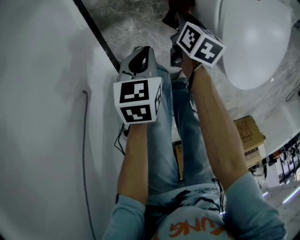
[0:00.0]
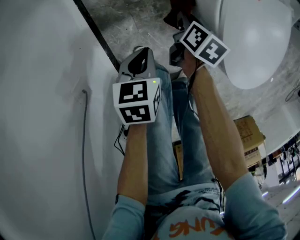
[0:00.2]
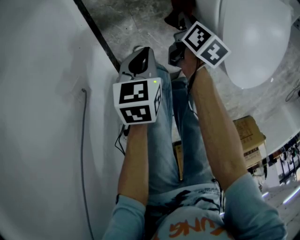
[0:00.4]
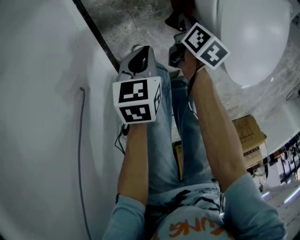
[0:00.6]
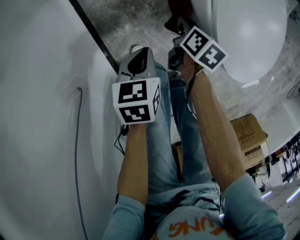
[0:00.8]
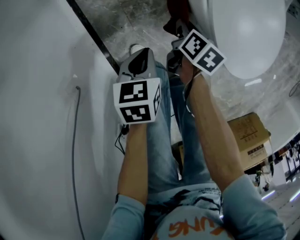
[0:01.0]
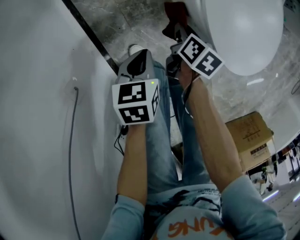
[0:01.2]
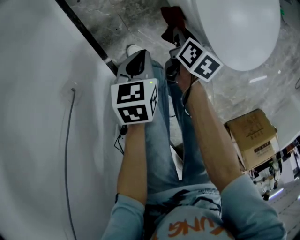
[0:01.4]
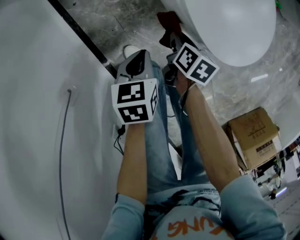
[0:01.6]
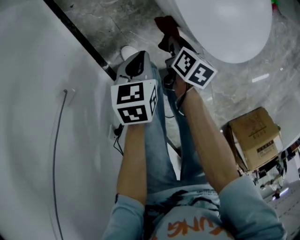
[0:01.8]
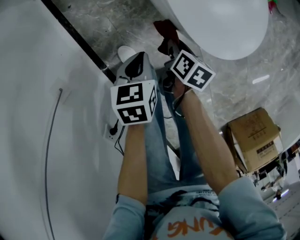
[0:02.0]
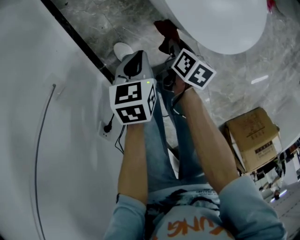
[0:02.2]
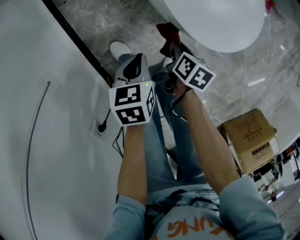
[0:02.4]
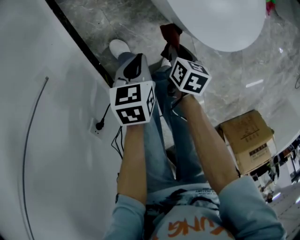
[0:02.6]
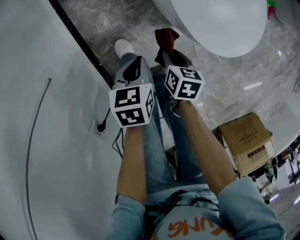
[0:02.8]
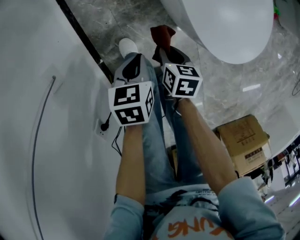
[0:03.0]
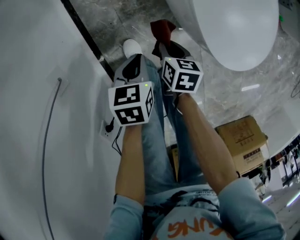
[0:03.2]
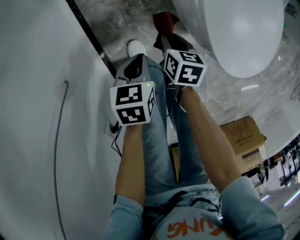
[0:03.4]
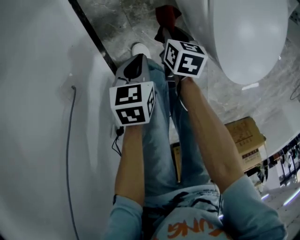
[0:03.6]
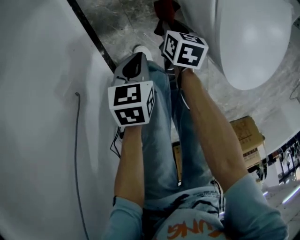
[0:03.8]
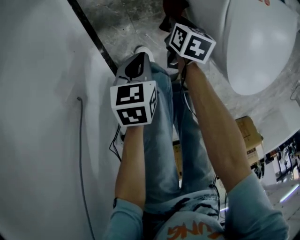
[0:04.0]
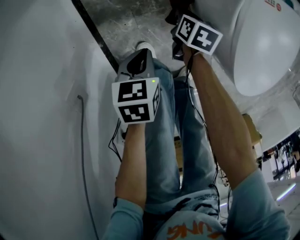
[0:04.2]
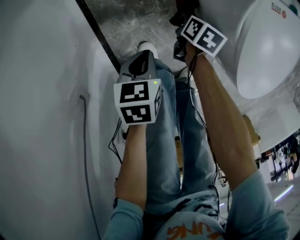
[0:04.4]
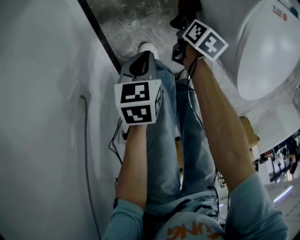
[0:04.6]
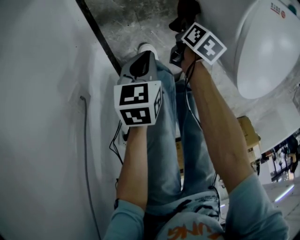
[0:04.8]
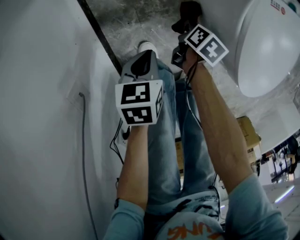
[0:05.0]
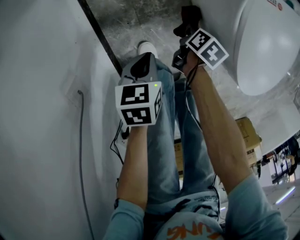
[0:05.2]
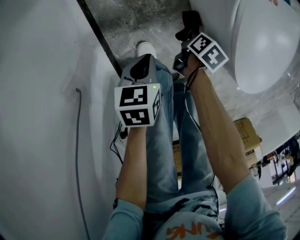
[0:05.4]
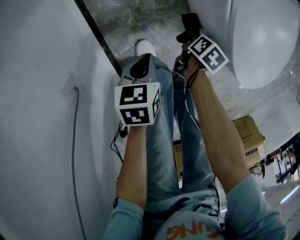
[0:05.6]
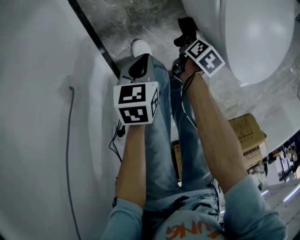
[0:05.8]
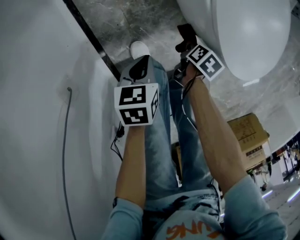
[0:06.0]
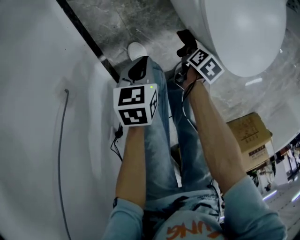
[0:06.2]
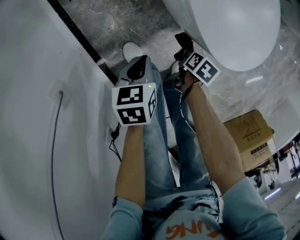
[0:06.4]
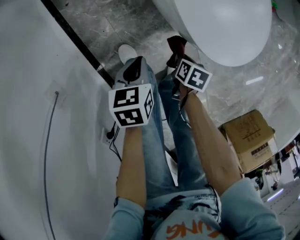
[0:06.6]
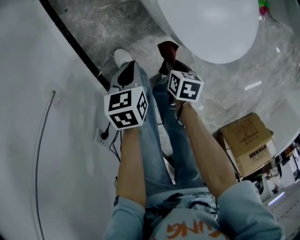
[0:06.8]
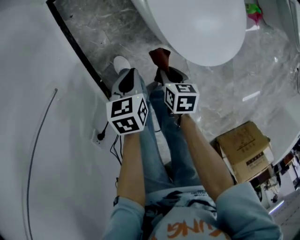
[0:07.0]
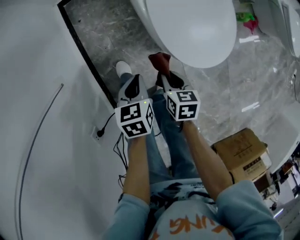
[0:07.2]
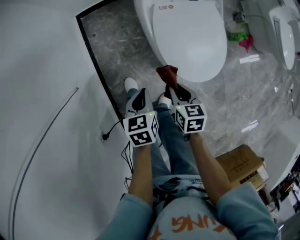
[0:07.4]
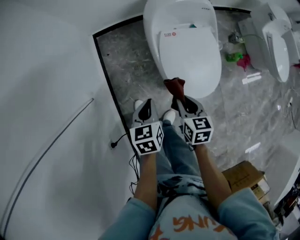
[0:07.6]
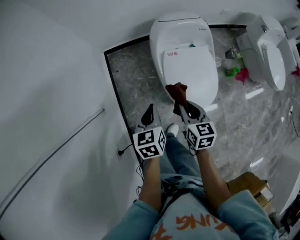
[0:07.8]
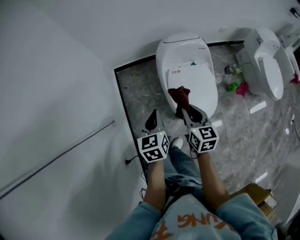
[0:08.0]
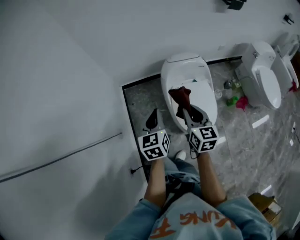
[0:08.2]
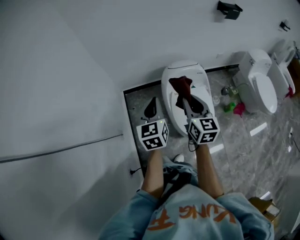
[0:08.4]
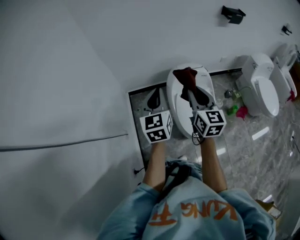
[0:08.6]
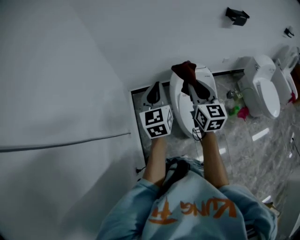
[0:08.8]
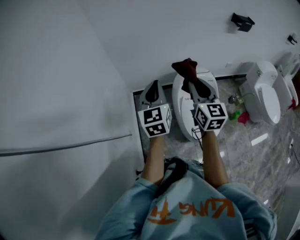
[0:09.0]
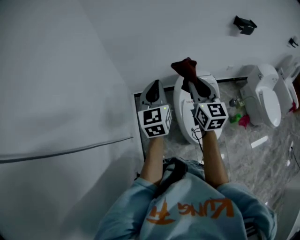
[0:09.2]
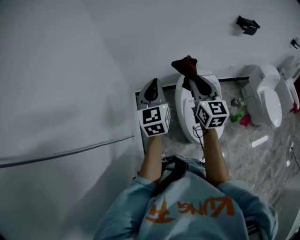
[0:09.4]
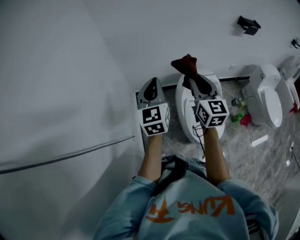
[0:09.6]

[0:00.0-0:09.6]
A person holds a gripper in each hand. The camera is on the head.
0:00.0 to 0:01.6: The left gripper moves to the right, some 10 cm. Meanwhile the right gripper moves to the right and backward, approximately 15 cm.
0:01.6 to 0:03.2: The left gripper travels to the right and back again, roughly 5 cm each way. Meanwhile the right gripper heads backward, covering approximately 5 cm, reaches some 10 cm to the right, then returns, and changes its angle by approximately 30 degrees.
0:03.2 to 0:04.8: The left gripper goes about 15 cm to the left, forward and downward; the right gripper goes roughly 15 cm forward and downward, and rotates about 20 degrees.
0:04.8 to 0:06.4: The right gripper moves some 25 cm. Meanwhile the left gripper changes place by roughly 15 cm.
0:06.4 to 0:08.0: Both grippers travel together upward, some 50 cm. The right gripper tilts its fingers roughly 50 degrees upward; the left gripper rotates about 40 degrees.
0:08.0 to 0:09.6: The right gripper moves upward and forward, some 30 cm, and swivels approximately 30 degrees. Meanwhile the left gripper is displaced upward, forward and to the left by about 30 cm, and turns by roughly 30 degrees.

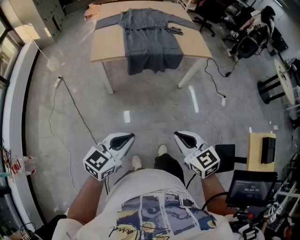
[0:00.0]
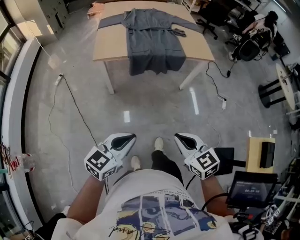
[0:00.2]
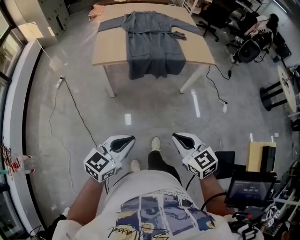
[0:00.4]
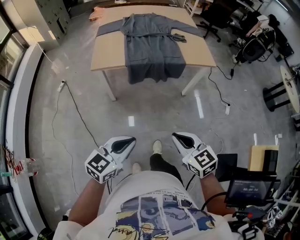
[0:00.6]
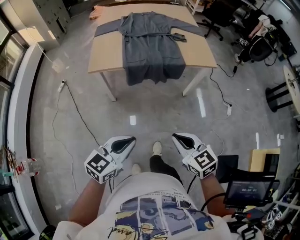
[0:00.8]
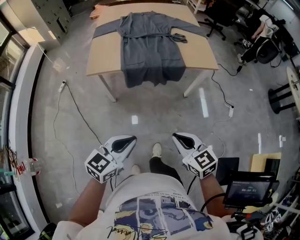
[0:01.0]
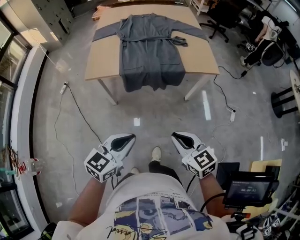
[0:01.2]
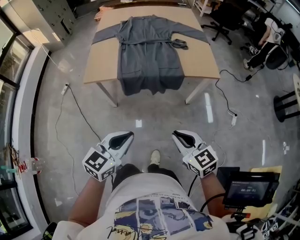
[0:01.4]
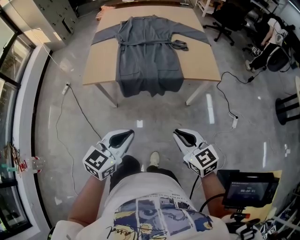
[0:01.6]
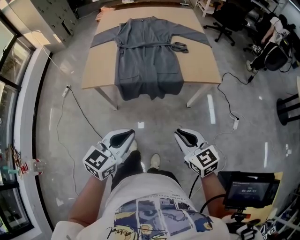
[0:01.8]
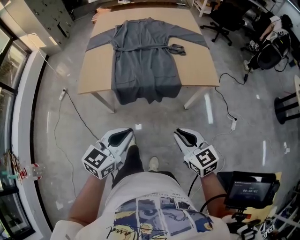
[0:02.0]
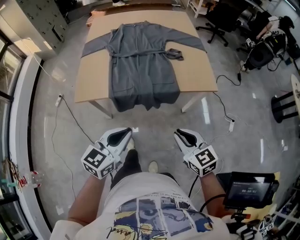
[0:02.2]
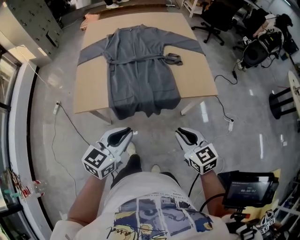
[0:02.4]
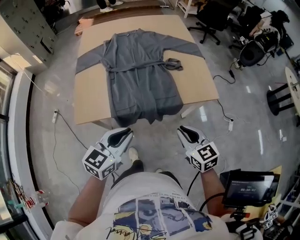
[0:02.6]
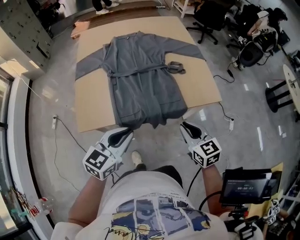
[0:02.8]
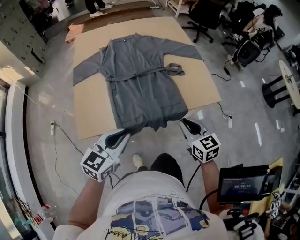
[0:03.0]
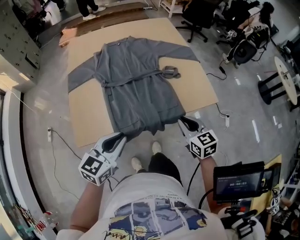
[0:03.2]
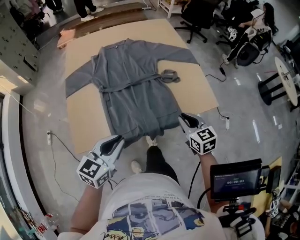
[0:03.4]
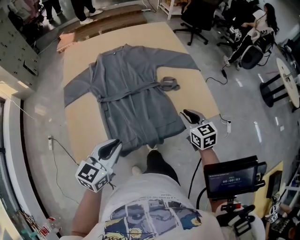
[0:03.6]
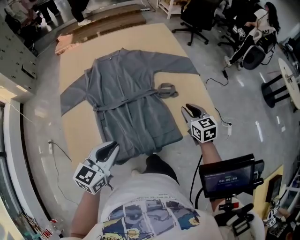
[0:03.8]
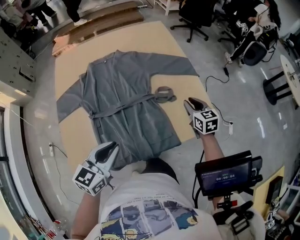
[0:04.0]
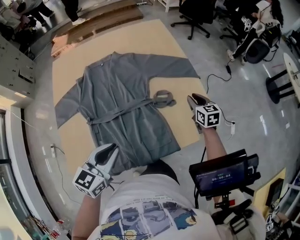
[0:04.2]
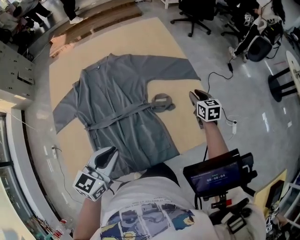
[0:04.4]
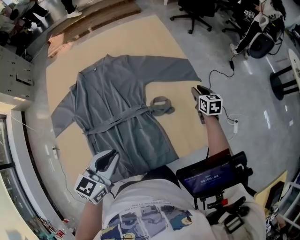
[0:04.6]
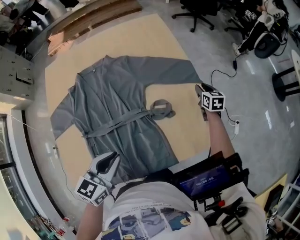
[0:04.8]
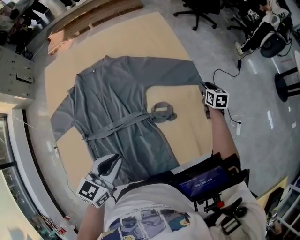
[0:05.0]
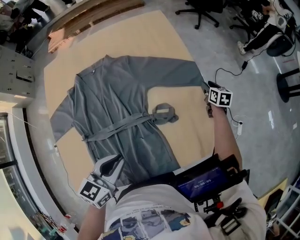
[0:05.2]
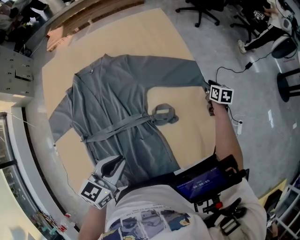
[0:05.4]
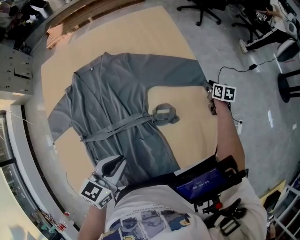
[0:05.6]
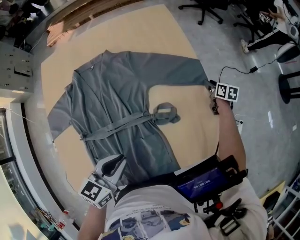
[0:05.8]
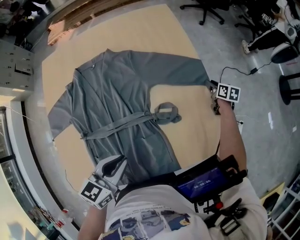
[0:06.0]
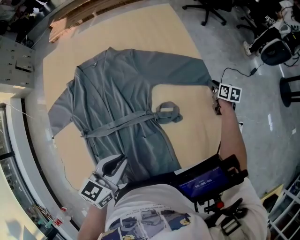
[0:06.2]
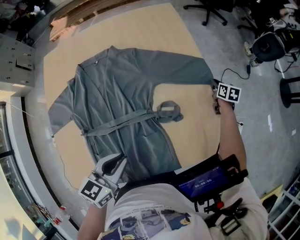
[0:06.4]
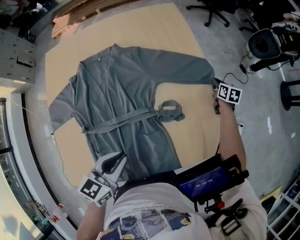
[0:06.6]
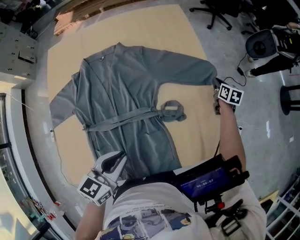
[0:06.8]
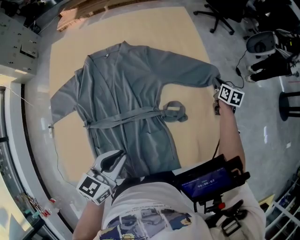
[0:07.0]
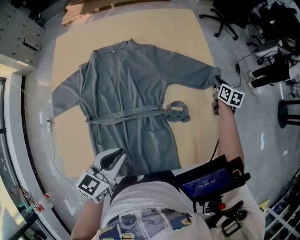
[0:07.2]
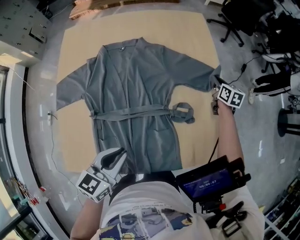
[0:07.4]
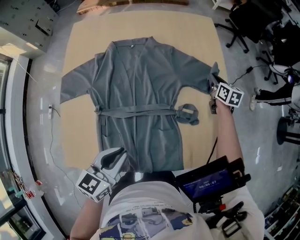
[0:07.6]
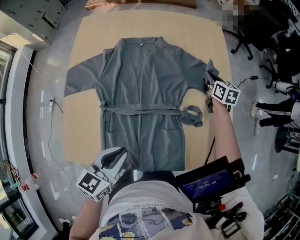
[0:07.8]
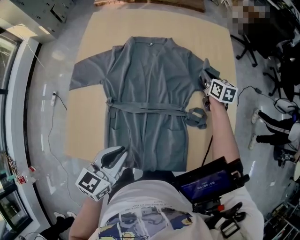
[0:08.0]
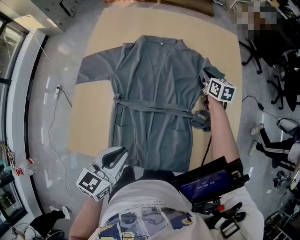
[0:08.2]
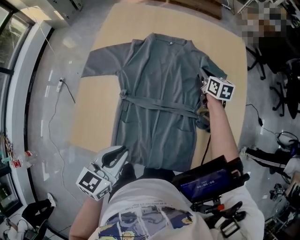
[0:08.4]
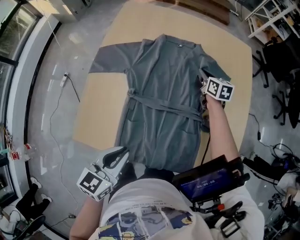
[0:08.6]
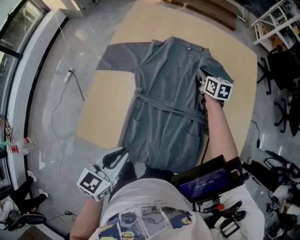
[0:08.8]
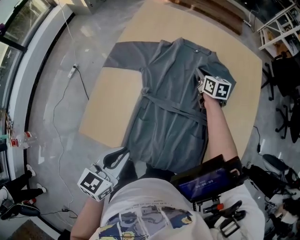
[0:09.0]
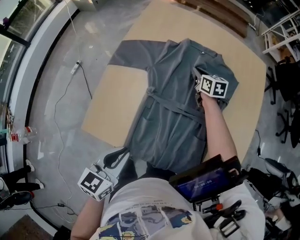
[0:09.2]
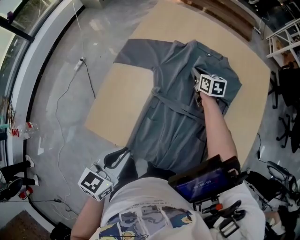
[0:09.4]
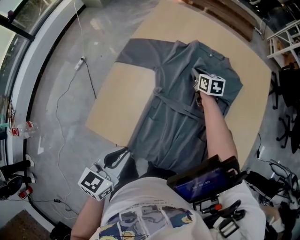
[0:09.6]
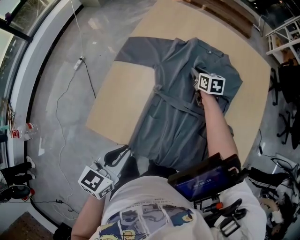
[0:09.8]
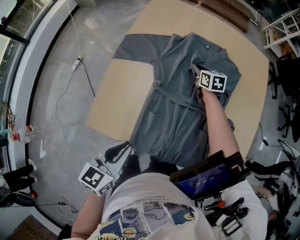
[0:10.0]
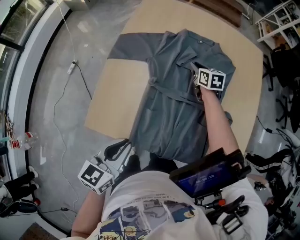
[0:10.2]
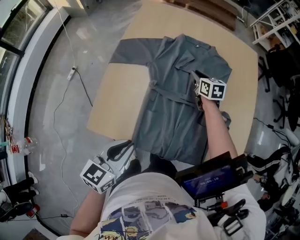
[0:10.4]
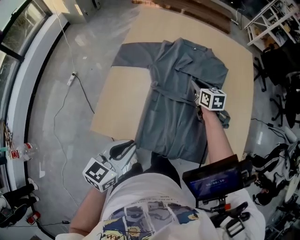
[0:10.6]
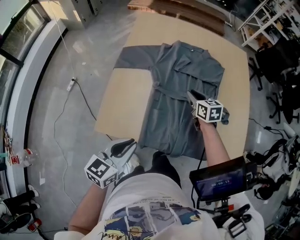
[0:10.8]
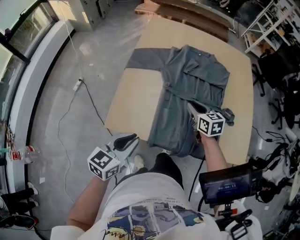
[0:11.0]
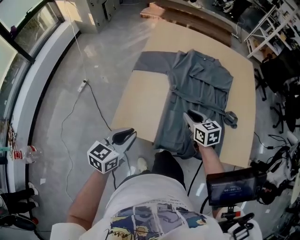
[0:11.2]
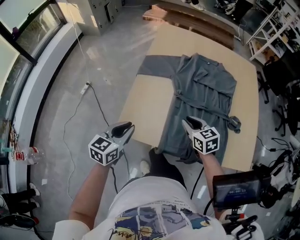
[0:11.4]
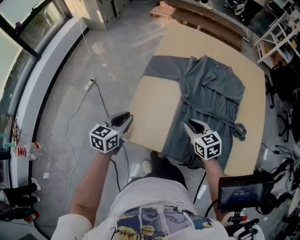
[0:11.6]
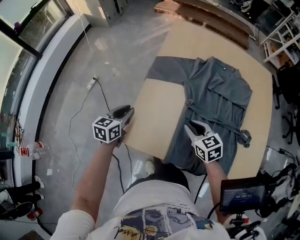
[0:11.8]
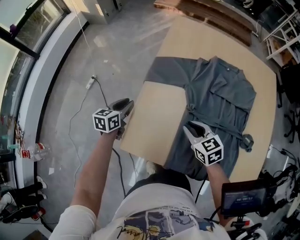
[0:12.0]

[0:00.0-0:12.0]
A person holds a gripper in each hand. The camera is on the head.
0:00.0 to 0:01.6: Both grippers travel together forward and to the right, some 25 cm.
0:01.6 to 0:03.0: The right gripper shifts some 25 cm forward, and changes its angle by roughly 20 degrees. The left gripper goes about 30 cm forward and to the left.
0:03.0 to 0:04.4: The left gripper shifts some 25 cm forward. The right gripper travels forward by some 40 cm.
0:04.4 to 0:06.0: The right gripper travels forward, downward and to the right by some 20 cm, and swivels approximately 20 degrees. Meanwhile the left gripper shifts approximately 5 cm forward.
0:06.0 to 0:07.6: The left gripper moves to the left and backward, about 10 cm, while the right gripper heads to the left and upward, covering about 20 cm, swivels roughly 20 degrees, and closes.
0:07.6 to 0:09.0: The right gripper shifts by roughly 35 cm, and changes its angle by approximately 30 degrees. The left gripper changes place by approximately 15 cm, and swivels about 20 degrees.
0:09.0 to 0:10.4: The right gripper travels backward by some 5 cm.
0:10.4 to 0:12.0: The left gripper heads to the left, forward and downward, covering some 35 cm. Meanwhile the right gripper shifts roughly 30 cm to the left and backward, and rotates approximately 20 degrees.

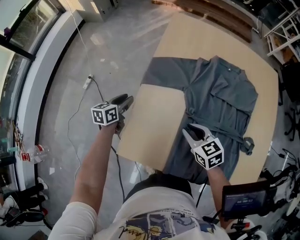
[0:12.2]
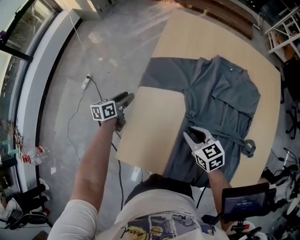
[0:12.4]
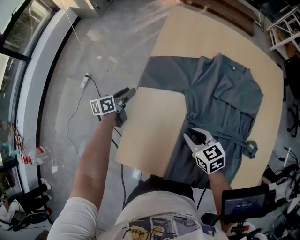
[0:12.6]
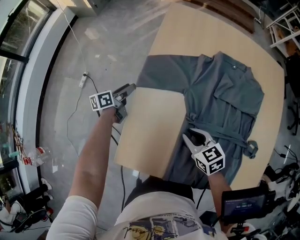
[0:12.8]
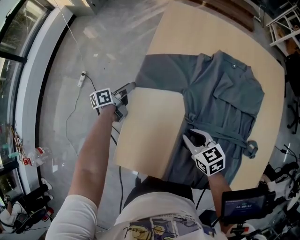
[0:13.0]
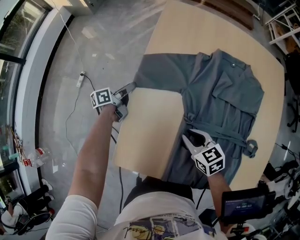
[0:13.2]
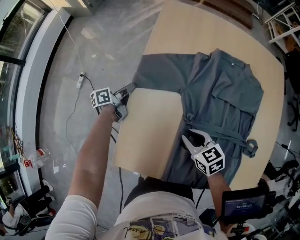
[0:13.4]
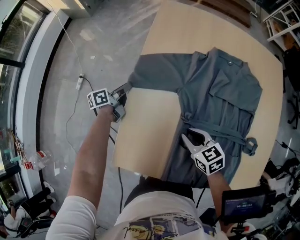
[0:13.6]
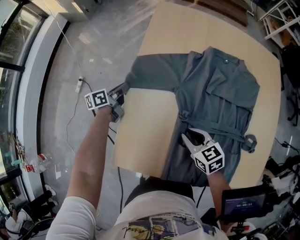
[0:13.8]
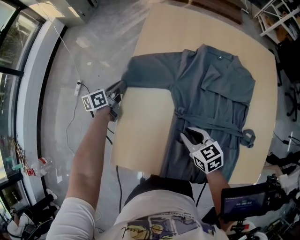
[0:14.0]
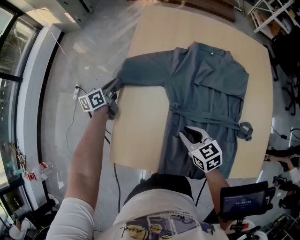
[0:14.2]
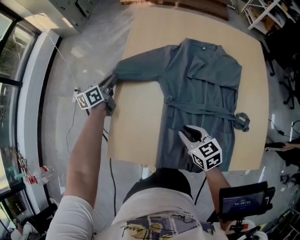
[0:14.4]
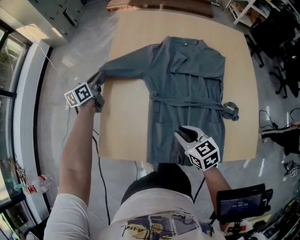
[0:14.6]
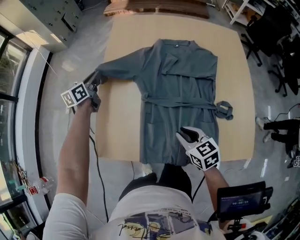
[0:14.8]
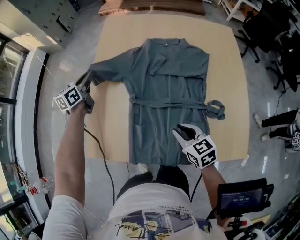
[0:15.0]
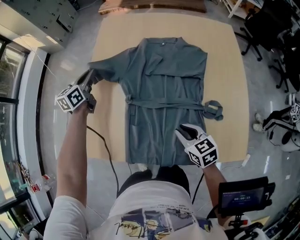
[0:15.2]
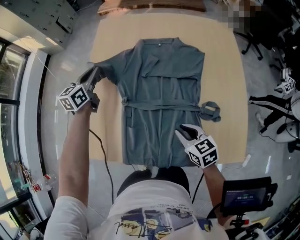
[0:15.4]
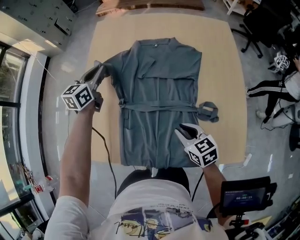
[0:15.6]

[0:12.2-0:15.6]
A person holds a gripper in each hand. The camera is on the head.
0:12.2 to 0:13.8: The left gripper travels forward by approximately 10 cm, changes its angle by approximately 30 degrees, and closes.
0:13.8 to 0:15.6: The right gripper moves to the right and backward, about 25 cm; the left gripper heads to the right and upward, covering approximately 35 cm, and twists some 50 degrees clockwise, seen from behind.
